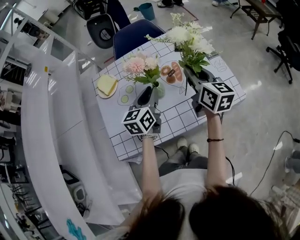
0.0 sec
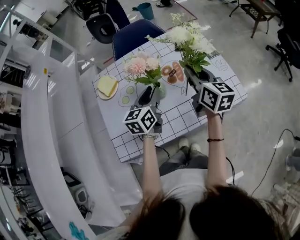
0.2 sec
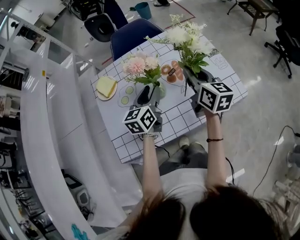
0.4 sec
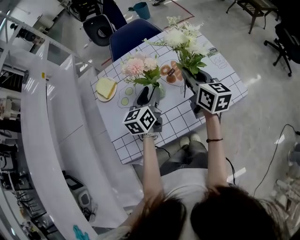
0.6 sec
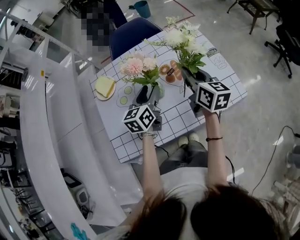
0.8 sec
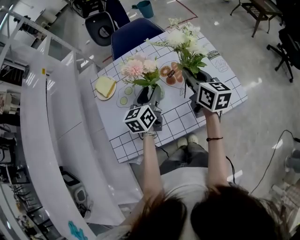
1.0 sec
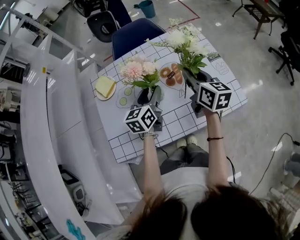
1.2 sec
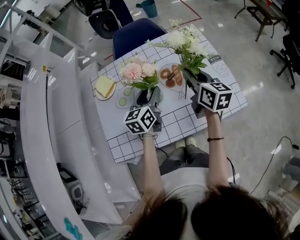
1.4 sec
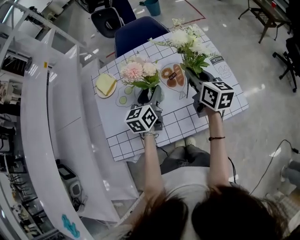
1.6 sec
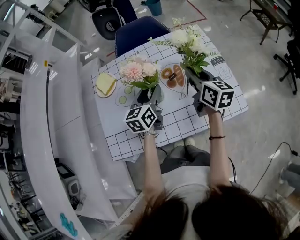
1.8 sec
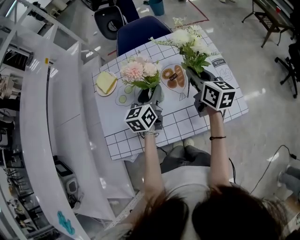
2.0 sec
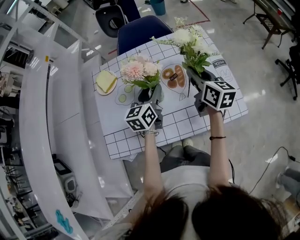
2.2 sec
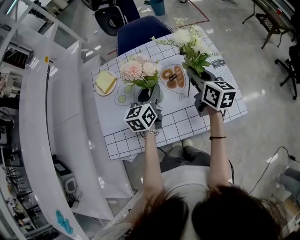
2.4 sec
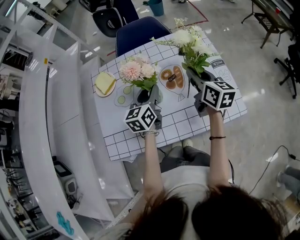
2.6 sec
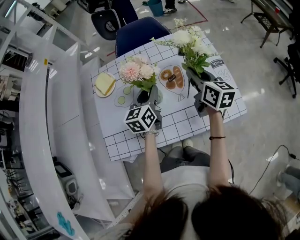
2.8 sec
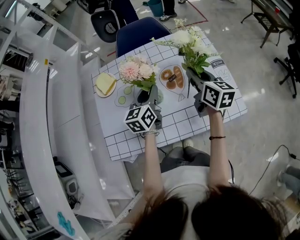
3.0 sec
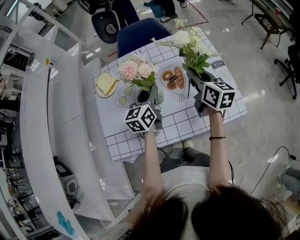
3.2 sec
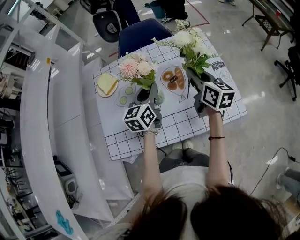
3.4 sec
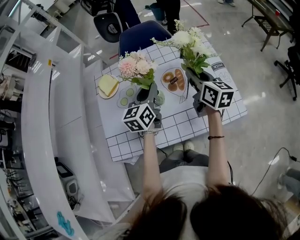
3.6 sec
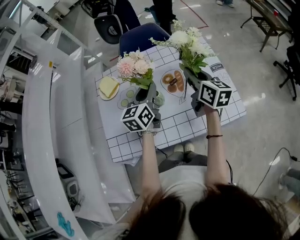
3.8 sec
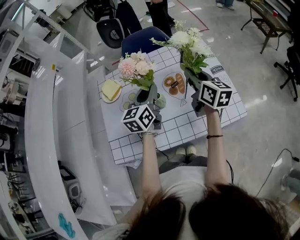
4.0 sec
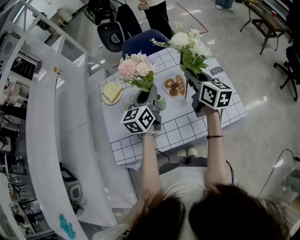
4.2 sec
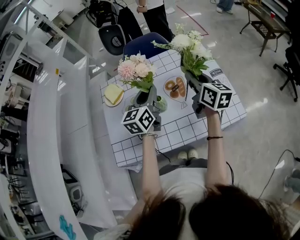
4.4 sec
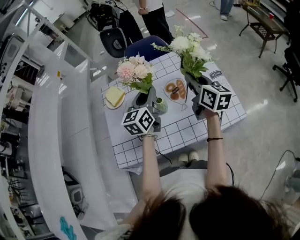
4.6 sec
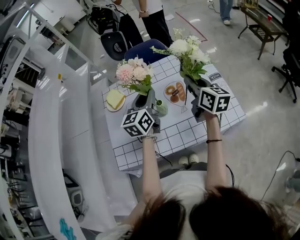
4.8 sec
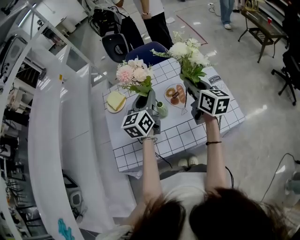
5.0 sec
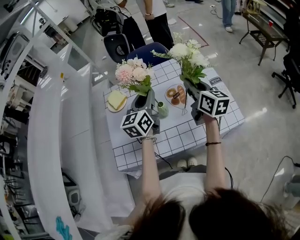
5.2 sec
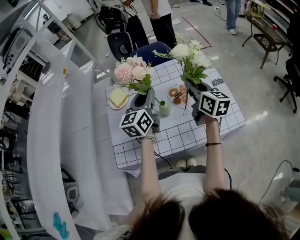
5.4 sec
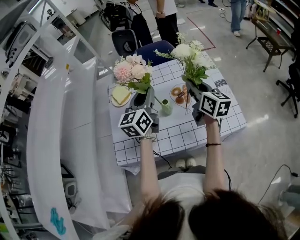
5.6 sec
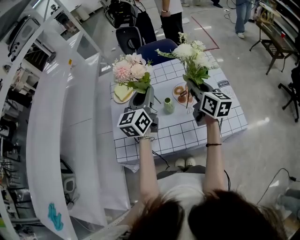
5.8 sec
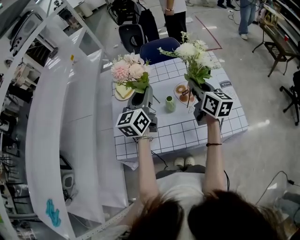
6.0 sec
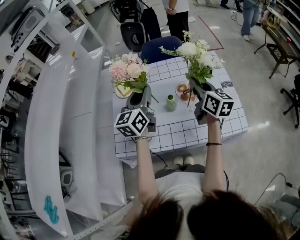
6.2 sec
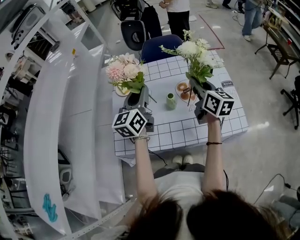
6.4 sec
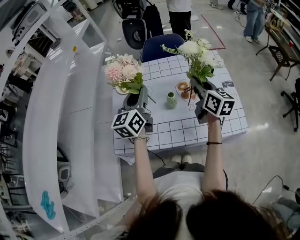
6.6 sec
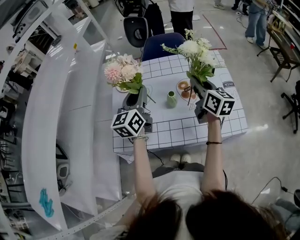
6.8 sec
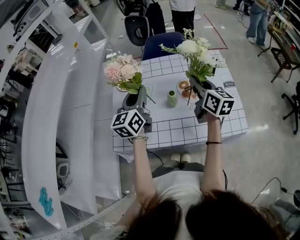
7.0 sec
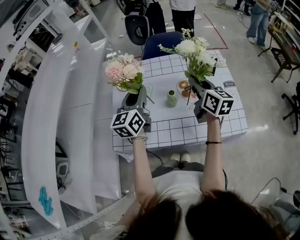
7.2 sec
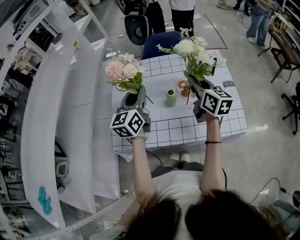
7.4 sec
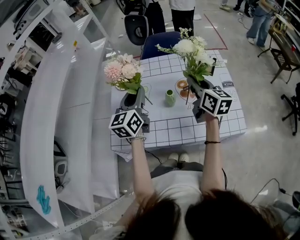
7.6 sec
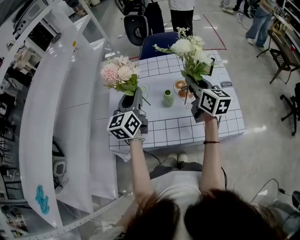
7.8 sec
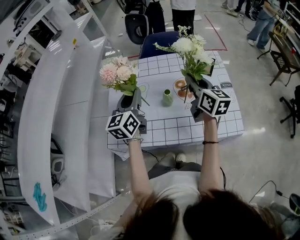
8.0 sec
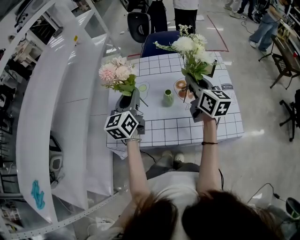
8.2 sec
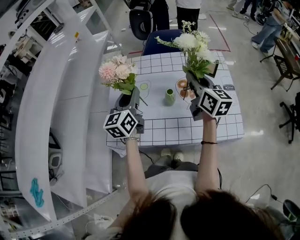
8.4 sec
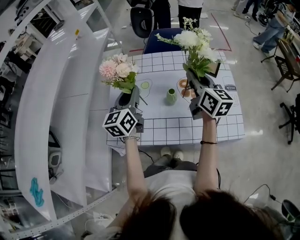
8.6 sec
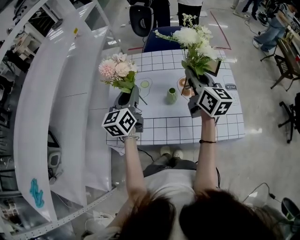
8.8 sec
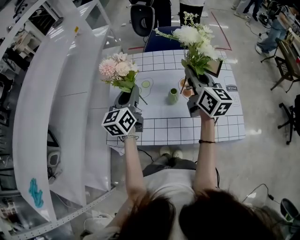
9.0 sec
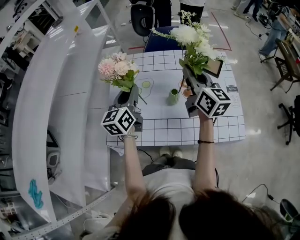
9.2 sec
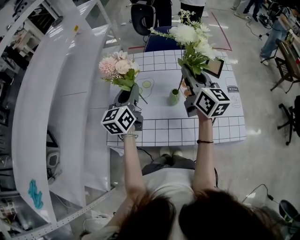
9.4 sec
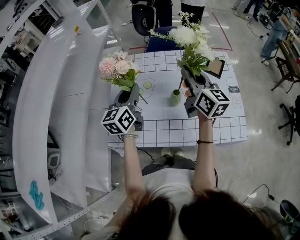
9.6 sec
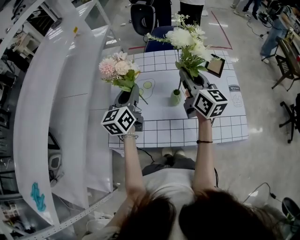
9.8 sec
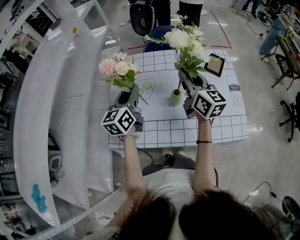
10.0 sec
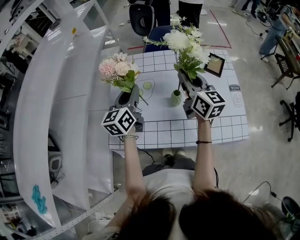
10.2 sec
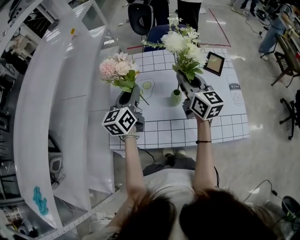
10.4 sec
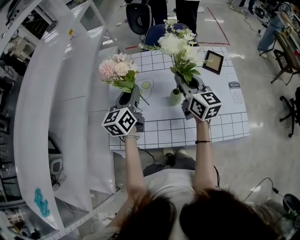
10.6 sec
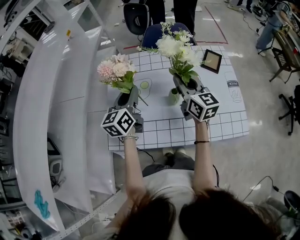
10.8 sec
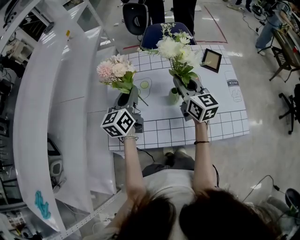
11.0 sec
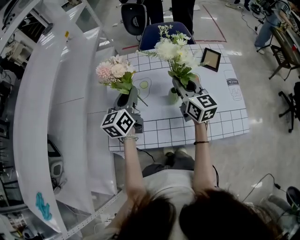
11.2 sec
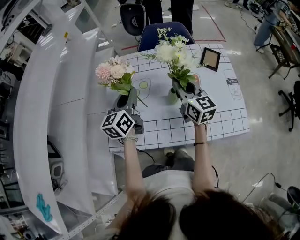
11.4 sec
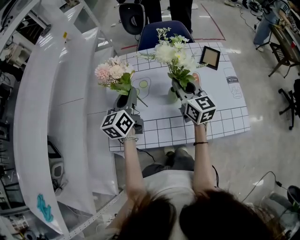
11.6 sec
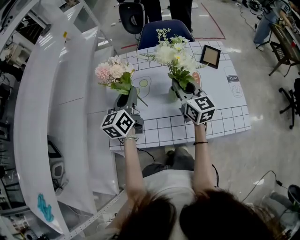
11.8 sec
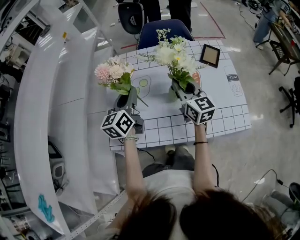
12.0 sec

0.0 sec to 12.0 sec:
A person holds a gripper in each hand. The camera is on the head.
0.0 sec to 1.6 sec: The right gripper shifts by about 5 cm. Meanwhile the left gripper opens.
1.6 sec to 3.0 sec: The left gripper closes.
3.0 sec to 4.4 sec: The left gripper travels upward by about 5 cm.
4.4 sec to 6.0 sec: The right gripper moves about 5 cm, while the left gripper travels to the left and upward by approximately 10 cm.
6.0 sec to 7.6 sec: The left gripper moves roughly 5 cm.
7.6 sec to 9.0 sec: The right gripper ends up about 5 cm from where it was; the left gripper shifts by about 5 cm.
9.0 sec to 10.4 sec: The right gripper moves some 5 cm.
10.4 sec to 12.0 sec: The right gripper goes roughly 5 cm downward.

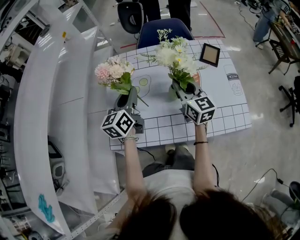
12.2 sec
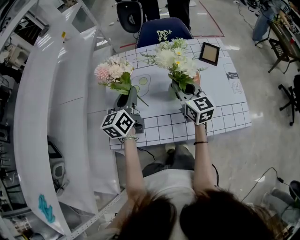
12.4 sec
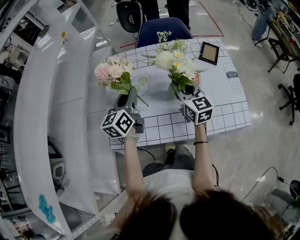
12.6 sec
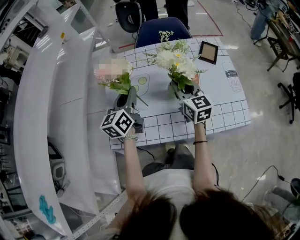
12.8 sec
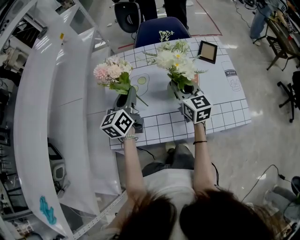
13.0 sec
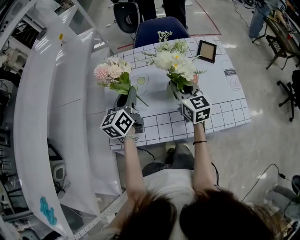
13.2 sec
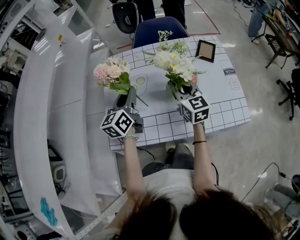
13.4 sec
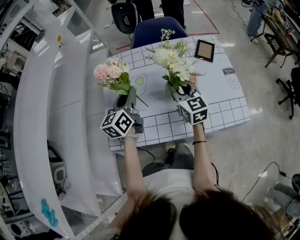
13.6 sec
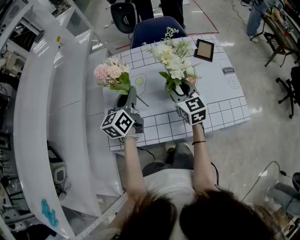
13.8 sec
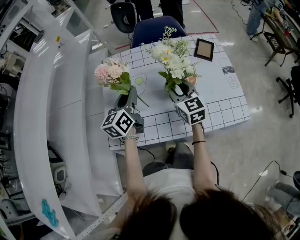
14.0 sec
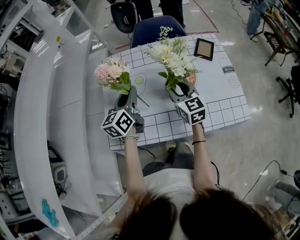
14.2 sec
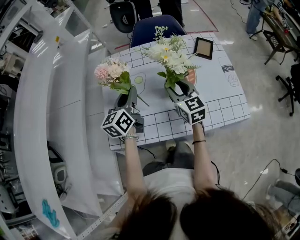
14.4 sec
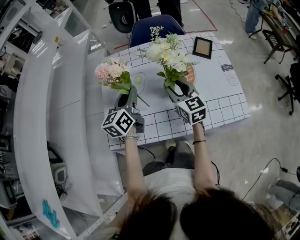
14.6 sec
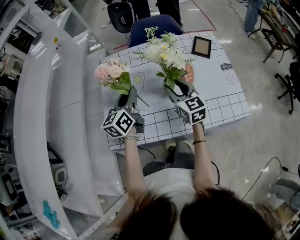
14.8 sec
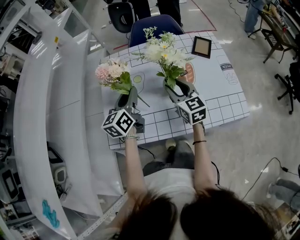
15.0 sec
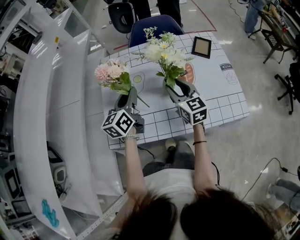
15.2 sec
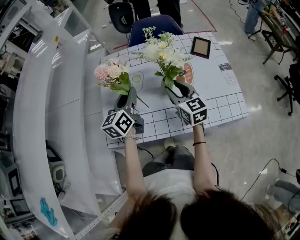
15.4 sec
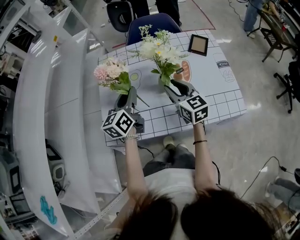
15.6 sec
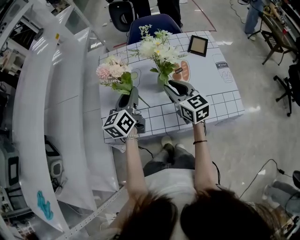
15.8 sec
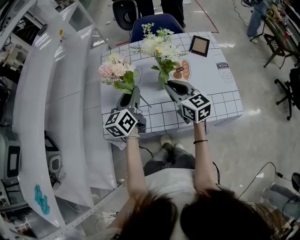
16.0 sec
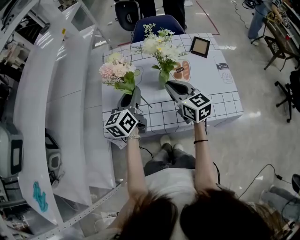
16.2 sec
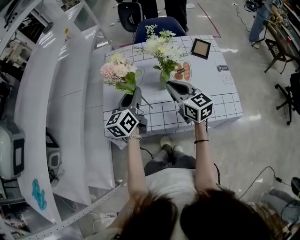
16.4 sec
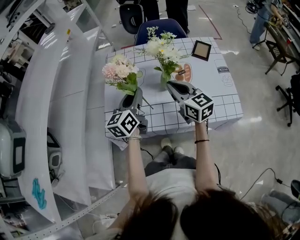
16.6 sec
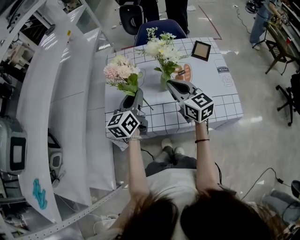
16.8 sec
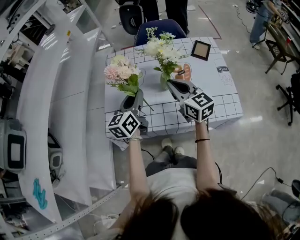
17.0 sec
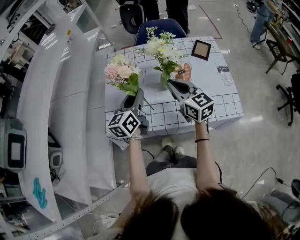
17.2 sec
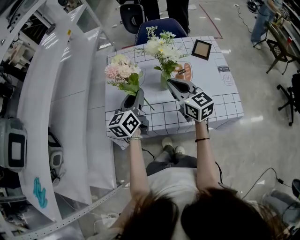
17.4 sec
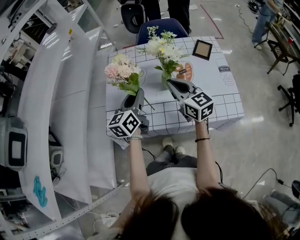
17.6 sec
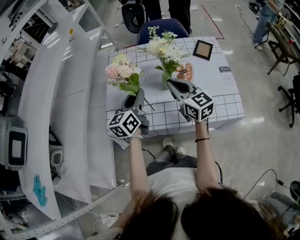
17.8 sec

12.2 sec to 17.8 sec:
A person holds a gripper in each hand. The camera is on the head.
12.2 sec to 15.0 sec: The grippers move only a little.
15.0 sec to 16.4 sec: The left gripper moves backward, roughly 5 cm. Meanwhile the right gripper travels backward and upward by roughly 10 cm, and closes.
16.4 sec to 17.8 sec: The grippers move only a little.

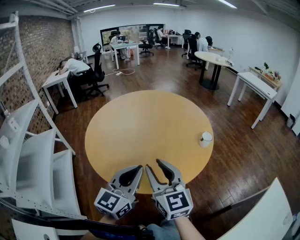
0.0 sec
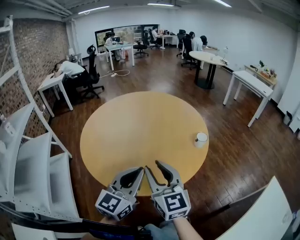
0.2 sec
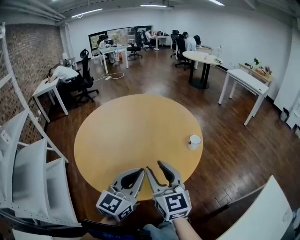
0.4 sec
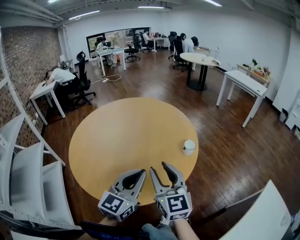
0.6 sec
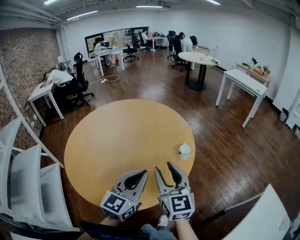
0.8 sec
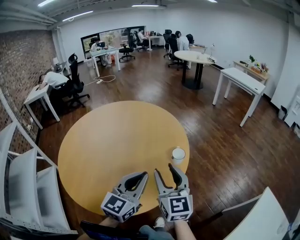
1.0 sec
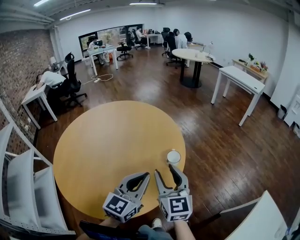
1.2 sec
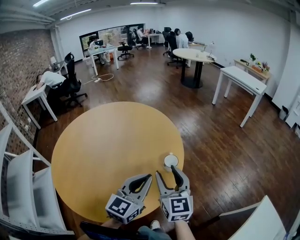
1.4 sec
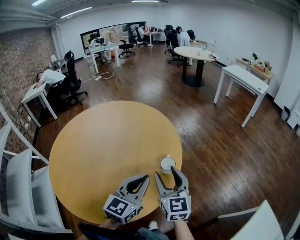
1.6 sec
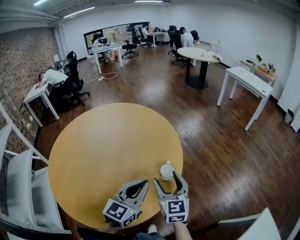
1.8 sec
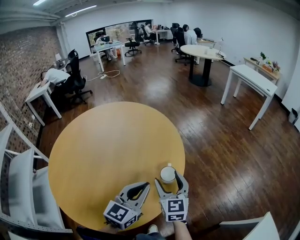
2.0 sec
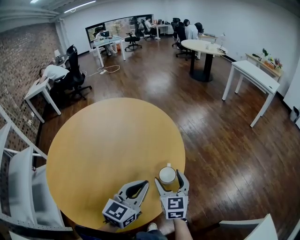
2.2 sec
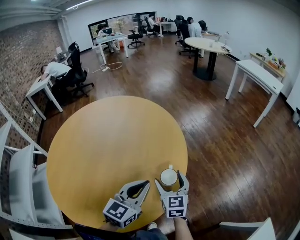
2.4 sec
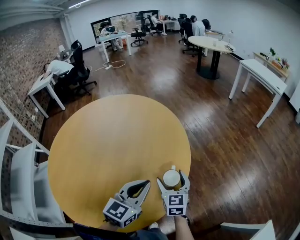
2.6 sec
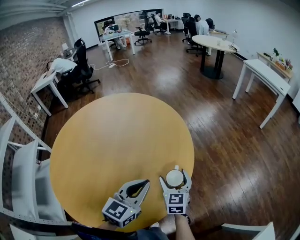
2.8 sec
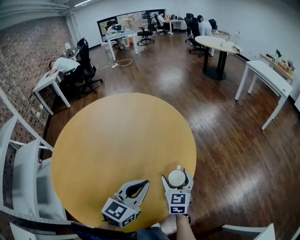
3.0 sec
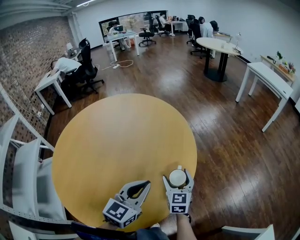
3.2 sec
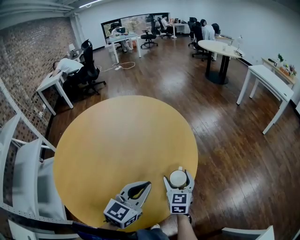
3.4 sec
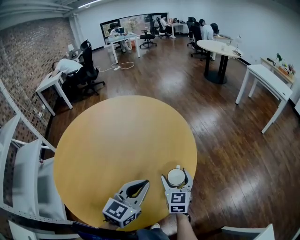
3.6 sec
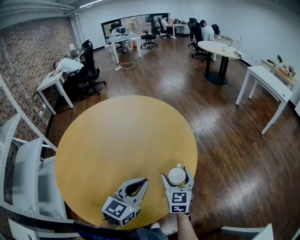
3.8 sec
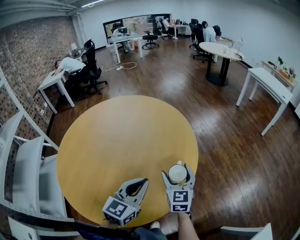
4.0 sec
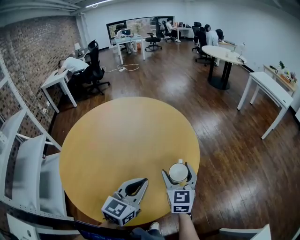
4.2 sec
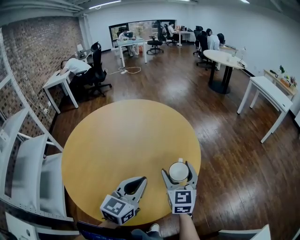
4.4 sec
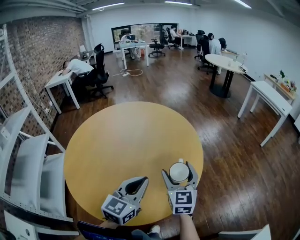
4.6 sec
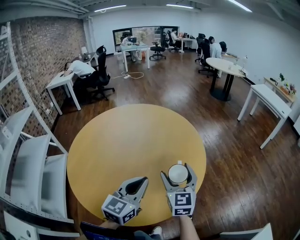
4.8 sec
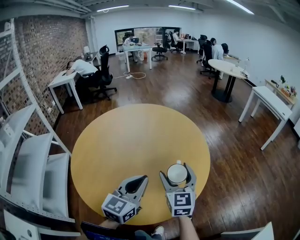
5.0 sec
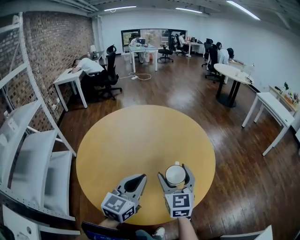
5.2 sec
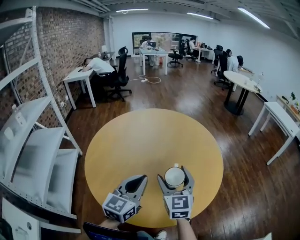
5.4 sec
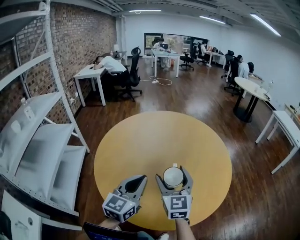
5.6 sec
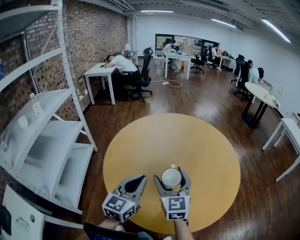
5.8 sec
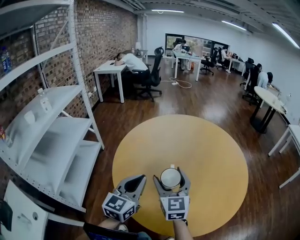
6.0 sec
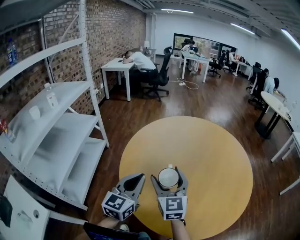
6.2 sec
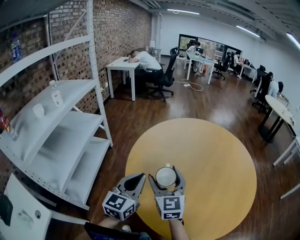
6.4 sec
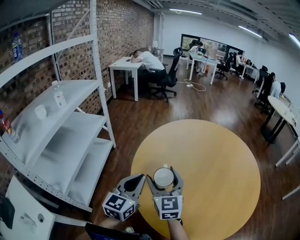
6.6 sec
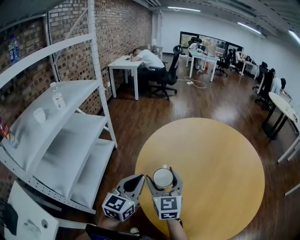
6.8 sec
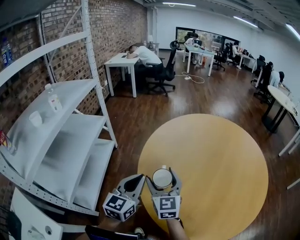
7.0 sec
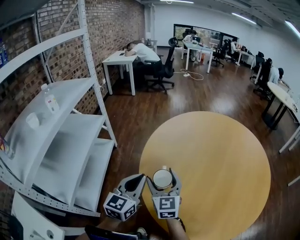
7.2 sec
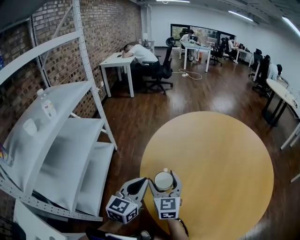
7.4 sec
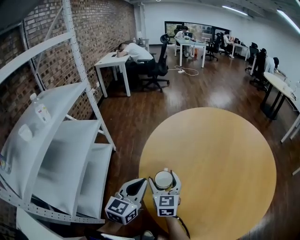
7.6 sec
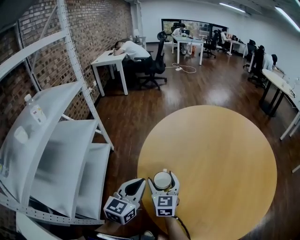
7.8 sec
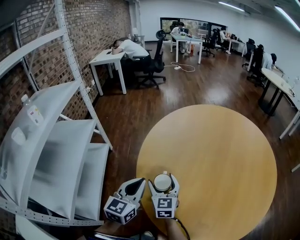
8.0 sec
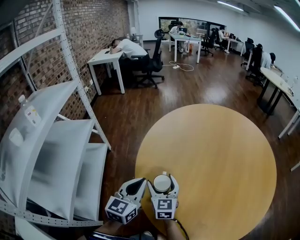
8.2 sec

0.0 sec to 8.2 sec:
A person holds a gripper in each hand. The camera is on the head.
0.0 sec to 1.6 sec: The grippers both shift to the right and forward by roughly 35 cm.
1.6 sec to 3.2 sec: The right gripper moves downward and forward, about 20 cm, and opens; the left gripper is displaced downward and forward by roughly 10 cm.
3.2 sec to 5.0 sec: The left gripper is displaced to the left, upward and backward by roughly 15 cm; the right gripper goes about 25 cm upward, to the left and backward.
5.0 sec to 6.6 sec: Both grippers are carried about 40 cm. The left gripper changes its angle by about 30 degrees; the right gripper turns by approximately 30 degrees.
6.6 sec to 8.2 sec: The right gripper heads downward and forward, covering some 20 cm. Meanwhile the left gripper heads downward, forward and to the left, covering some 15 cm.
